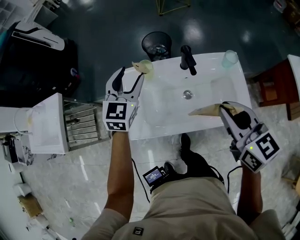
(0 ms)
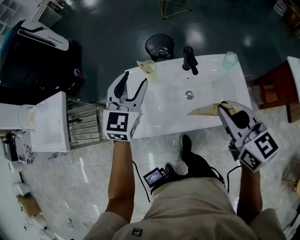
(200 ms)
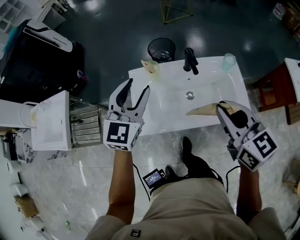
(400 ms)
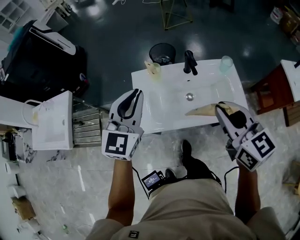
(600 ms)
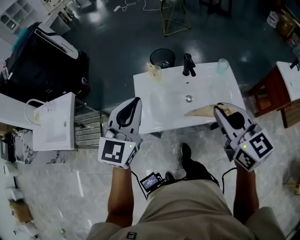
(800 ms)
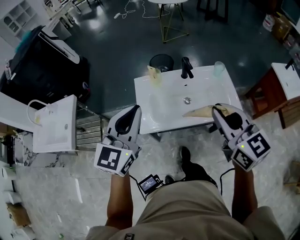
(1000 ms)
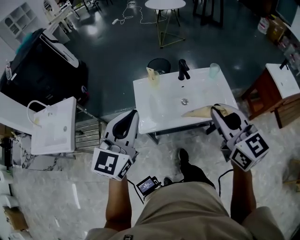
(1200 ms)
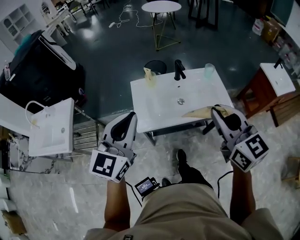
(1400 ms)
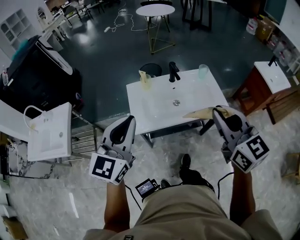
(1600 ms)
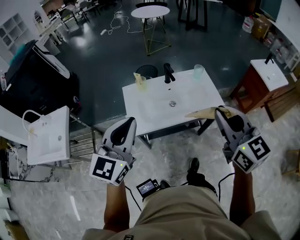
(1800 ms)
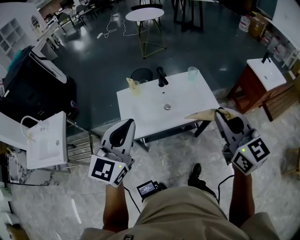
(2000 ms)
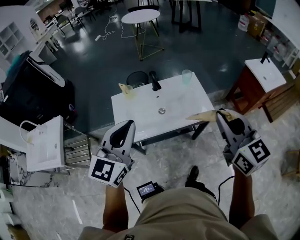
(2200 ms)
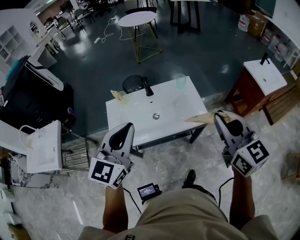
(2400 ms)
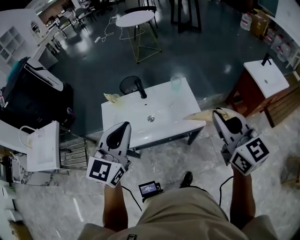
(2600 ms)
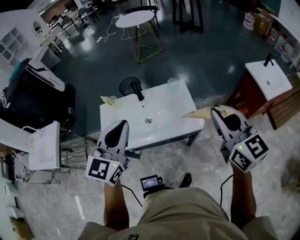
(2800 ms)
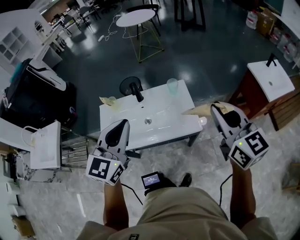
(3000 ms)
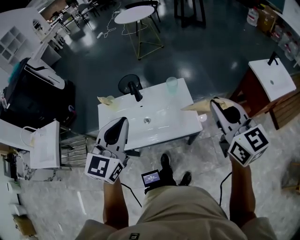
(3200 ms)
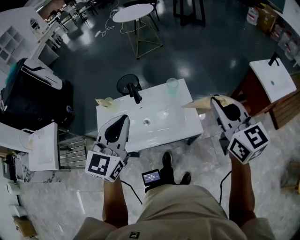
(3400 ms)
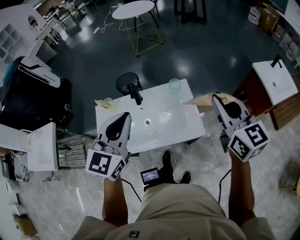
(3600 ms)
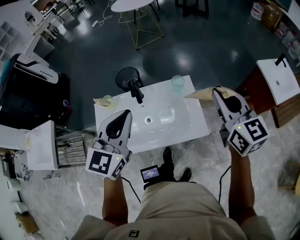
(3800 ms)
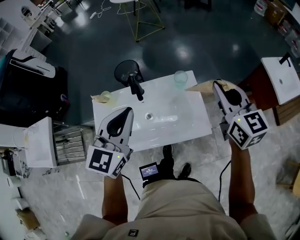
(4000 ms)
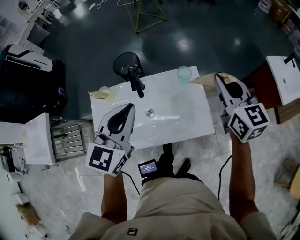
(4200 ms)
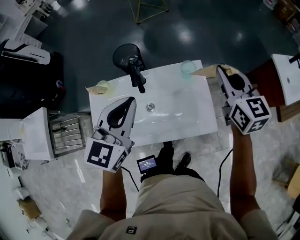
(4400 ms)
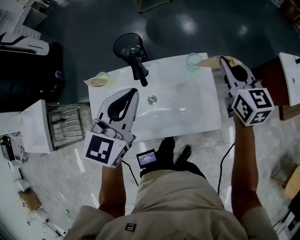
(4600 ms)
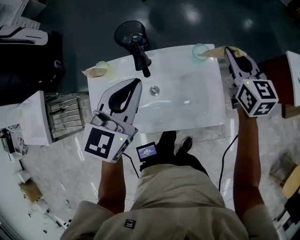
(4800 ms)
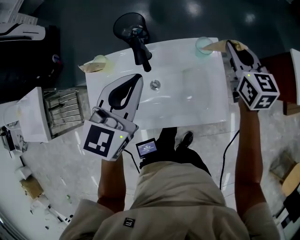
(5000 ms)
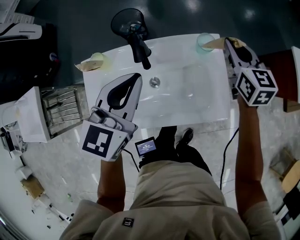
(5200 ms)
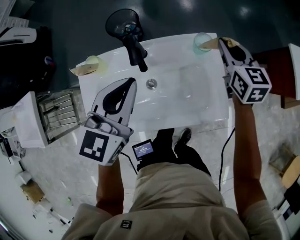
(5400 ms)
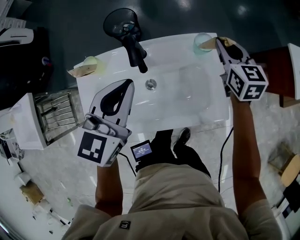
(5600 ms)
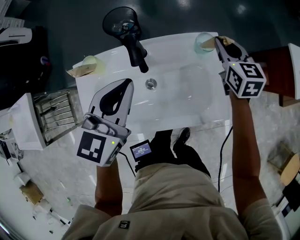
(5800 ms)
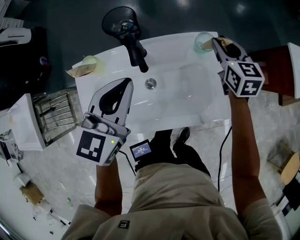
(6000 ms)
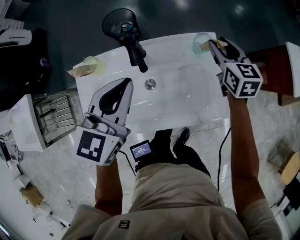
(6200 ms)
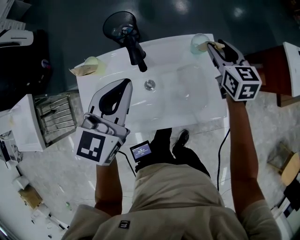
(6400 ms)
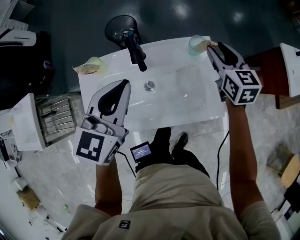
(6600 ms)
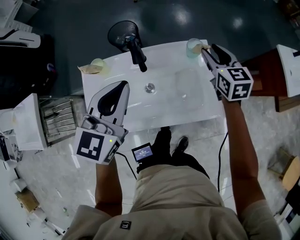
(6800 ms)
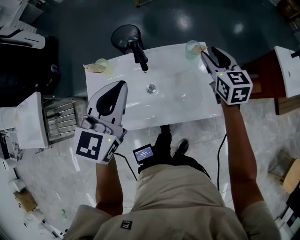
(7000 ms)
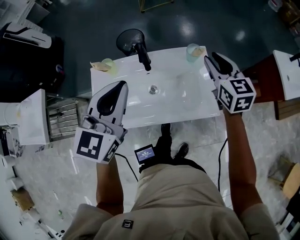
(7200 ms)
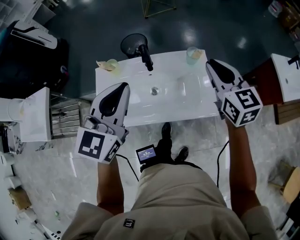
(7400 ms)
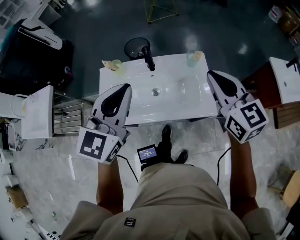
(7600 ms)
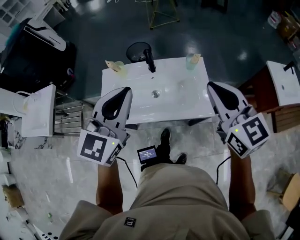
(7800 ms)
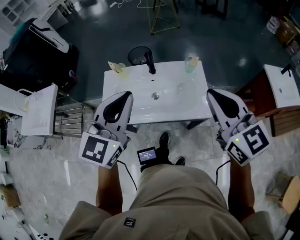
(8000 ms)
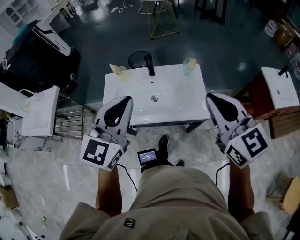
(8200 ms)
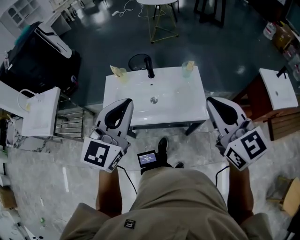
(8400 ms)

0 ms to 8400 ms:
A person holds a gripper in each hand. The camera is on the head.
0 ms to 1400 ms: Both grippers travel together backward and upward, about 35 cm. The left gripper closes.
1400 ms to 2800 ms: The grippers both shift to the right by some 30 cm.
2800 ms to 4200 ms: Both grippers move forward and downward, roughly 25 cm.
4200 ms to 5600 ms: The left gripper heads downward and forward, covering some 15 cm; the right gripper goes roughly 25 cm downward and forward.
5600 ms to 7000 ms: The right gripper shifts approximately 10 cm backward and upward, and opens, while the left gripper travels upward and backward by some 10 cm.
7000 ms to 8400 ms: The right gripper moves backward and upward, about 40 cm, changes its angle by about 30 degrees, and closes its fingers; the left gripper heads backward and upward, covering some 25 cm.

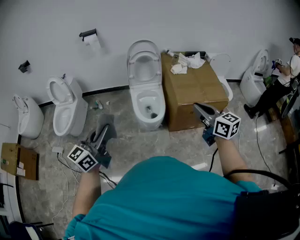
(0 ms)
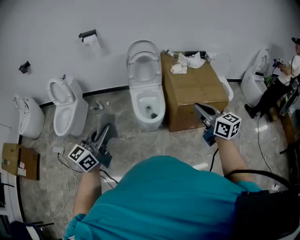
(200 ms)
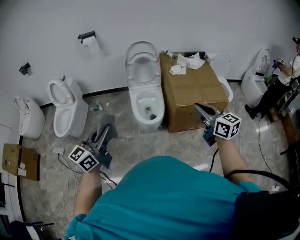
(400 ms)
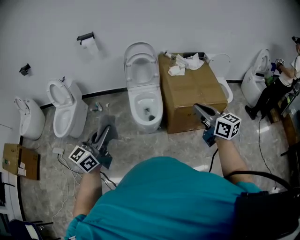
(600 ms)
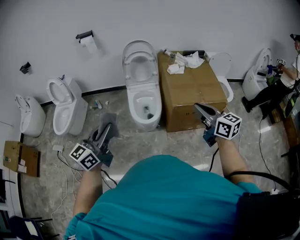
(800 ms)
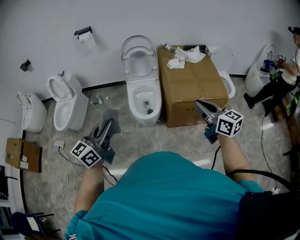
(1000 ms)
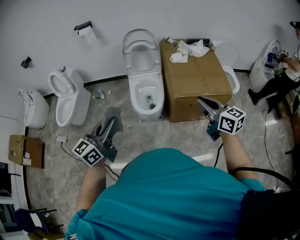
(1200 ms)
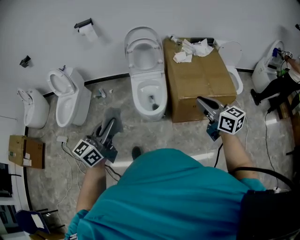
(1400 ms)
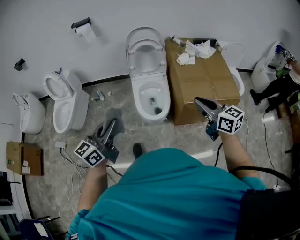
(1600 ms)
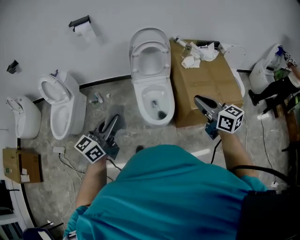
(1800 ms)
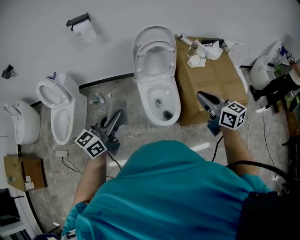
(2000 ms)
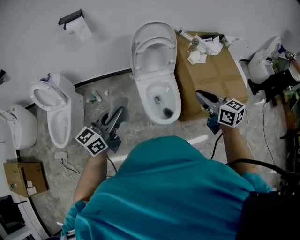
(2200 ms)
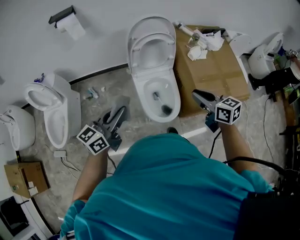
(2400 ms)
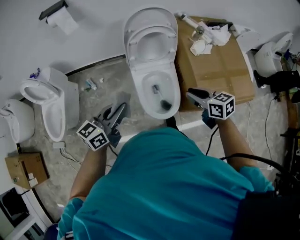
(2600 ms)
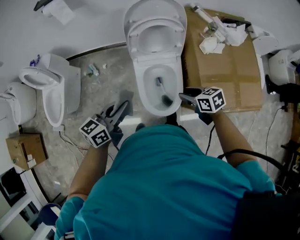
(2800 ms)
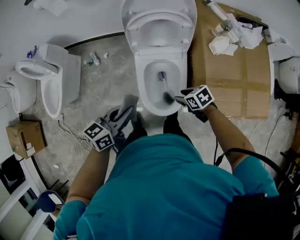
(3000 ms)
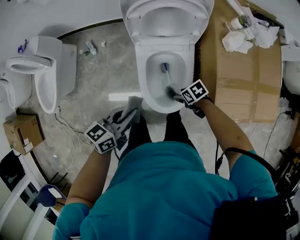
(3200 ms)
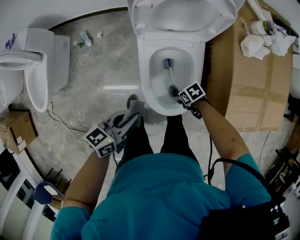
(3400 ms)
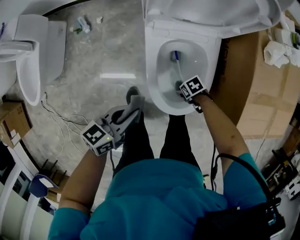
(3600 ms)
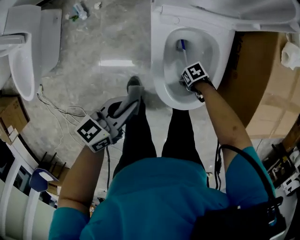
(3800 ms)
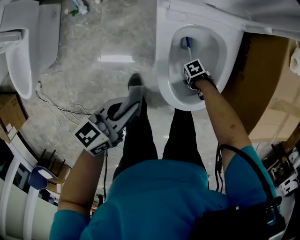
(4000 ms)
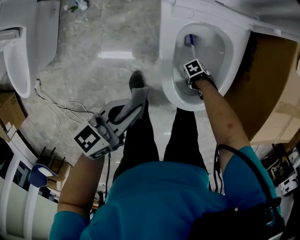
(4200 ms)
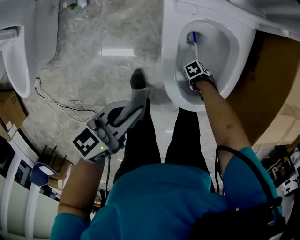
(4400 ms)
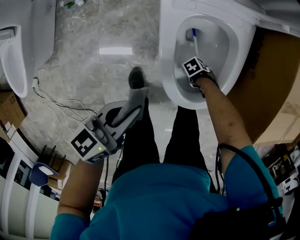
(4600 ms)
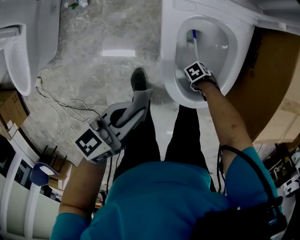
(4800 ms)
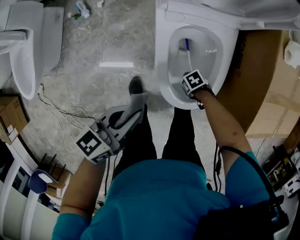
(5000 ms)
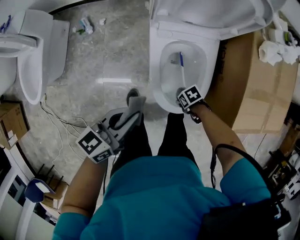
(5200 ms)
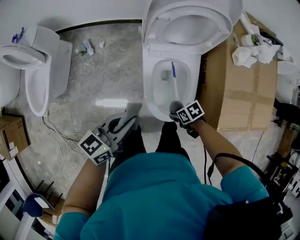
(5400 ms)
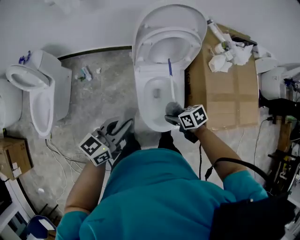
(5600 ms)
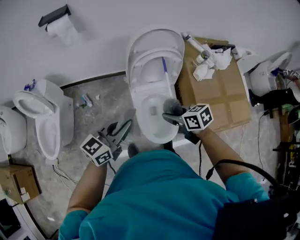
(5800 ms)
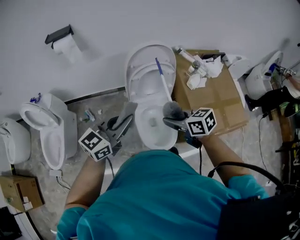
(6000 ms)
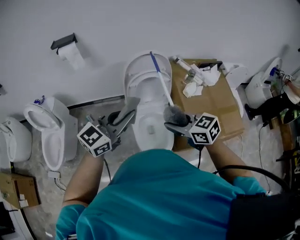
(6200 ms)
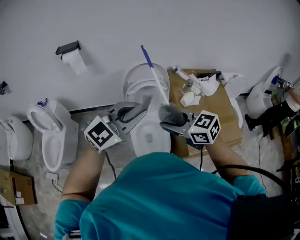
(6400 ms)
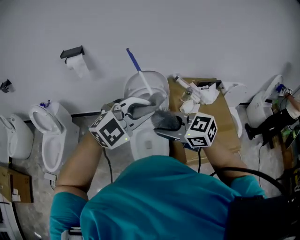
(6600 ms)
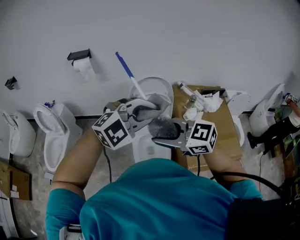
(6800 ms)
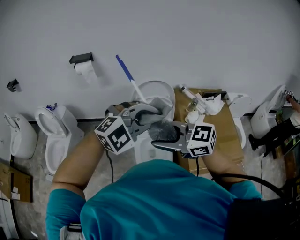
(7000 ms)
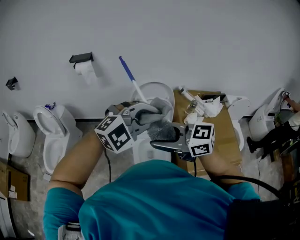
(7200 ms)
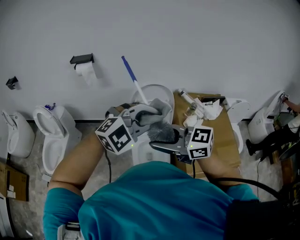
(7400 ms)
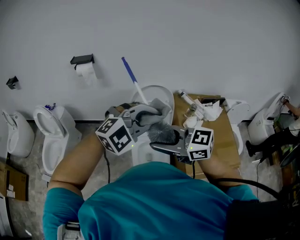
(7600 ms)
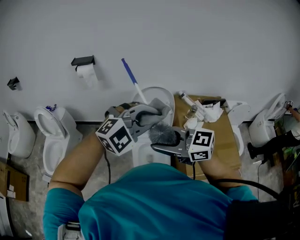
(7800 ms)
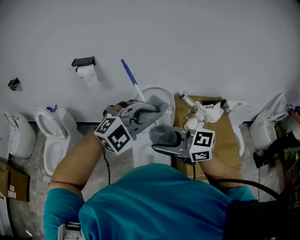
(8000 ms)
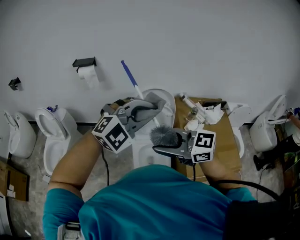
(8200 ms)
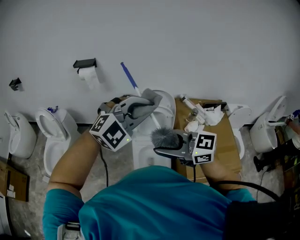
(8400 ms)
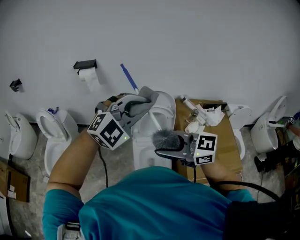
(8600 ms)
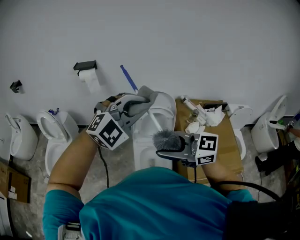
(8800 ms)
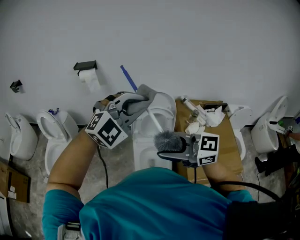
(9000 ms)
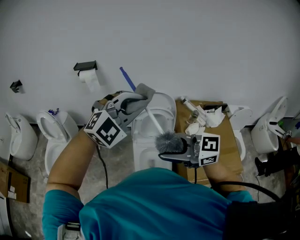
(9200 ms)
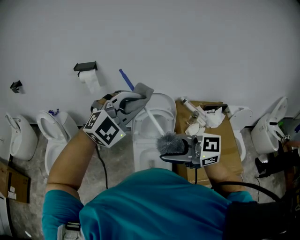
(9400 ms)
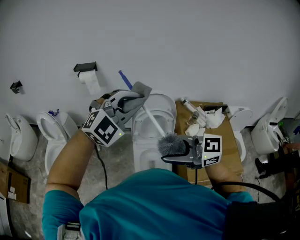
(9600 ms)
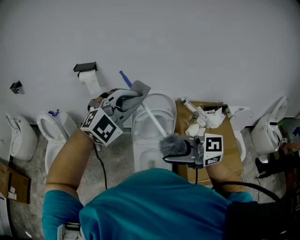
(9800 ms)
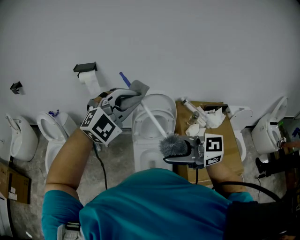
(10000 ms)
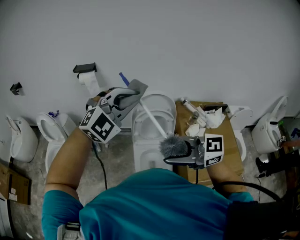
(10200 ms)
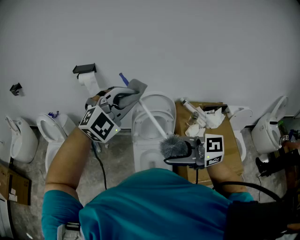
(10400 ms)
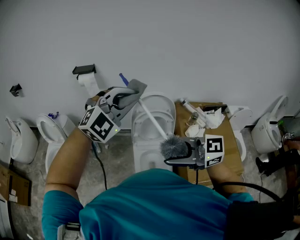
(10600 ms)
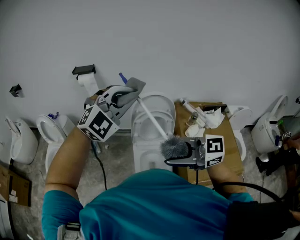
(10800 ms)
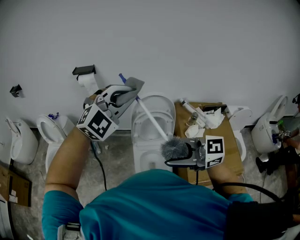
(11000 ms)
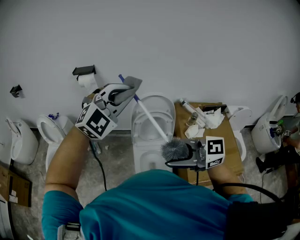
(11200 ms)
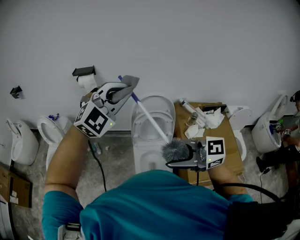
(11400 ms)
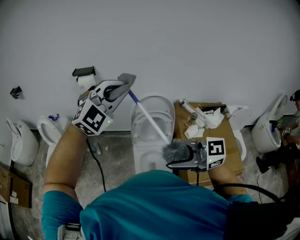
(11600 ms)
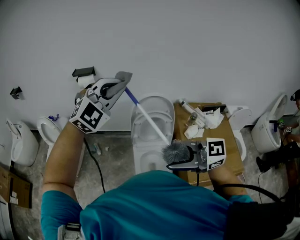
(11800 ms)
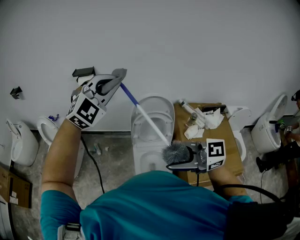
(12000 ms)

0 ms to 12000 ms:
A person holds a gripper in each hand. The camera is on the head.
0 ms to 1600 ms: The right gripper shifts approximately 15 cm forward and downward; the left gripper moves forward, downward and to the right, some 15 cm.
1600 ms to 3000 ms: The left gripper shifts by roughly 40 cm, and rotates roughly 30 degrees. Meanwhile the right gripper goes some 40 cm downward, tilts its fingers approximately 40 degrees downward, and opens up.
3000 ms to 4400 ms: The right gripper moves downward, roughly 40 cm, swivels roughly 50 degrees, and opens up. The left gripper travels downward by roughly 25 cm.
4400 ms to 6000 ms: The right gripper goes approximately 70 cm upward, turns by some 80 degrees, and closes its fingers. Meanwhile the left gripper goes some 40 cm upward, and changes its angle by some 40 degrees.
6000 ms to 7600 ms: The right gripper travels upward by some 20 cm, and changes its angle by some 50 degrees; the left gripper ends up about 20 cm from where it was, and rotates around the line of its fingers by roughly 60 degrees, clockwise from behind.
7600 ms to 9000 ms: The left gripper ends up roughly 10 cm from where it was.
9000 ms to 10400 ms: The grippers stay close to where they were, moving slightly.
10400 ms to 12000 ms: The left gripper ends up approximately 10 cm from where it was.

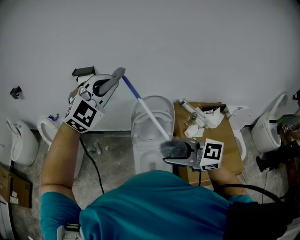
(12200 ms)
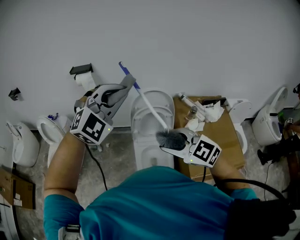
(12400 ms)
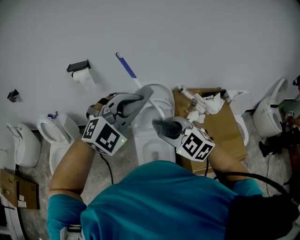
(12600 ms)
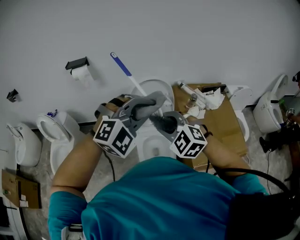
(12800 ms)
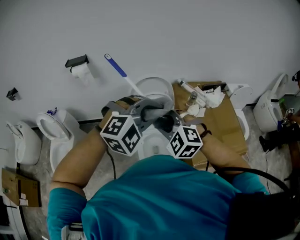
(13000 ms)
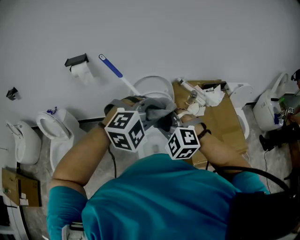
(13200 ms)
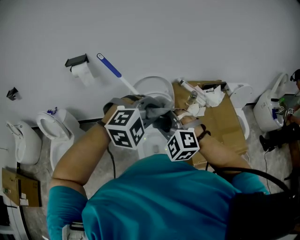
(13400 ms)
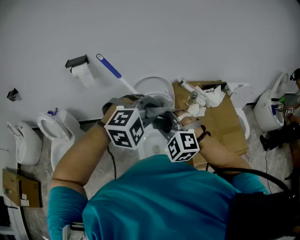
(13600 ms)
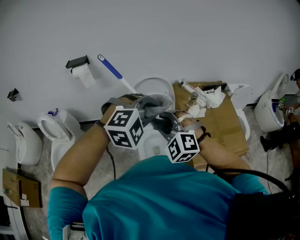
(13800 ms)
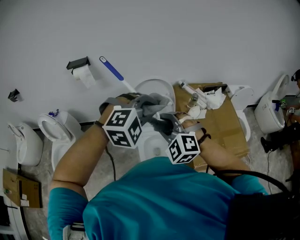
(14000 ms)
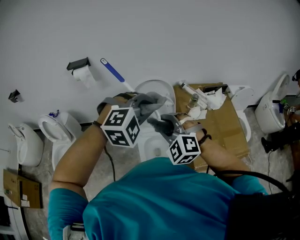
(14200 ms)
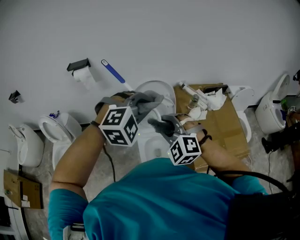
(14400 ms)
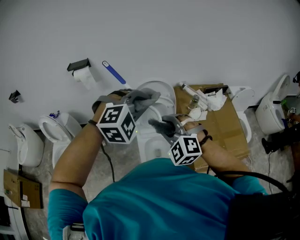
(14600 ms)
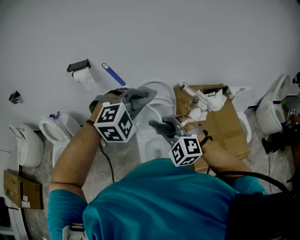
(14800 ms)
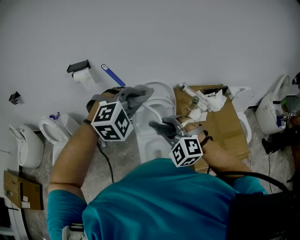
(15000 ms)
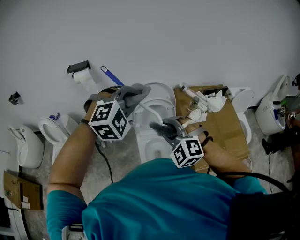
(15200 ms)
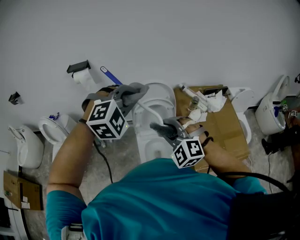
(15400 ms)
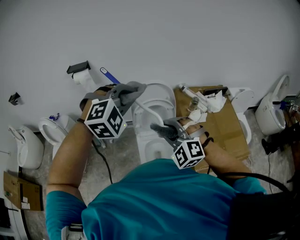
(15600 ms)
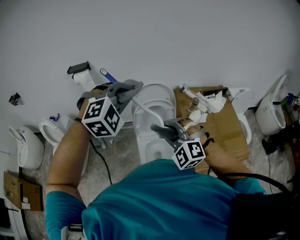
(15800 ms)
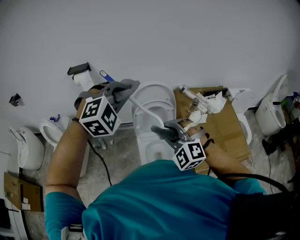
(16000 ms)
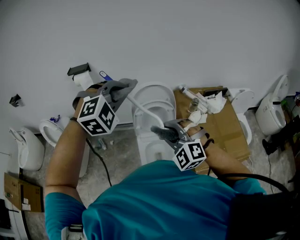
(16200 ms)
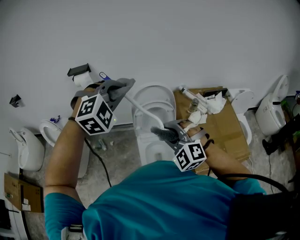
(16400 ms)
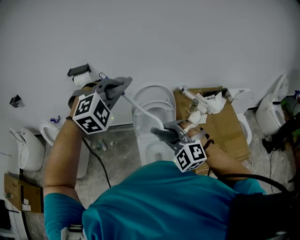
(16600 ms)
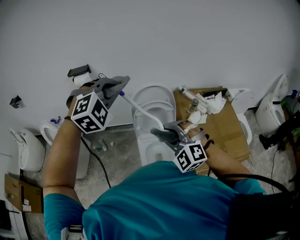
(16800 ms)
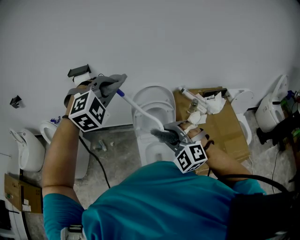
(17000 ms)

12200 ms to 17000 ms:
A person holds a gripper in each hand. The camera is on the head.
12200 ms to 13800 ms: The left gripper ends up some 25 cm from where it was, and tilts its fingers approximately 30 degrees downward. Meanwhile the right gripper changes place by approximately 10 cm, and changes its angle by approximately 60 degrees.
13800 ms to 15400 ms: The left gripper heads to the left and forward, covering approximately 10 cm.
15400 ms to 17000 ms: The left gripper moves to the left, some 5 cm.
